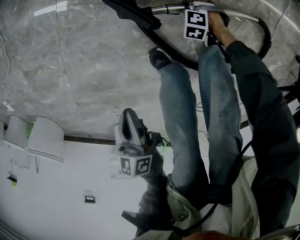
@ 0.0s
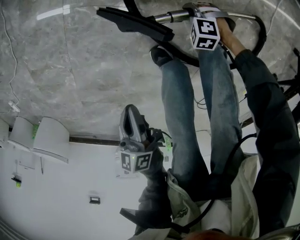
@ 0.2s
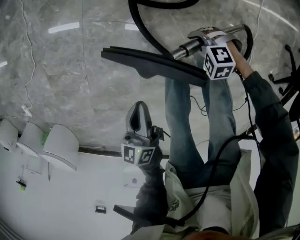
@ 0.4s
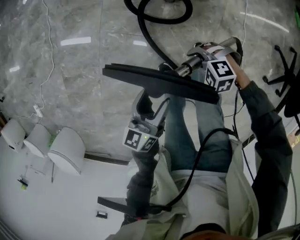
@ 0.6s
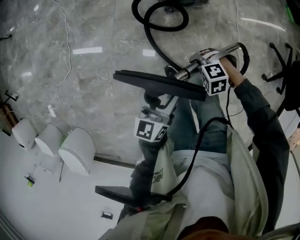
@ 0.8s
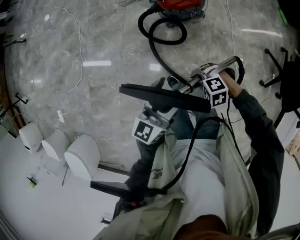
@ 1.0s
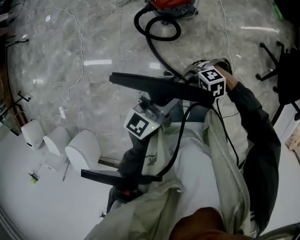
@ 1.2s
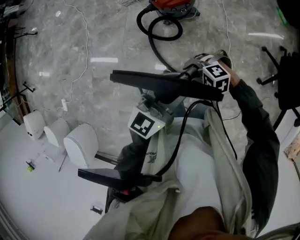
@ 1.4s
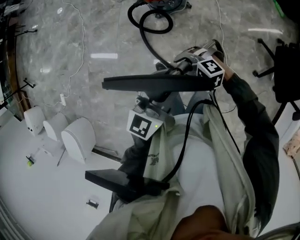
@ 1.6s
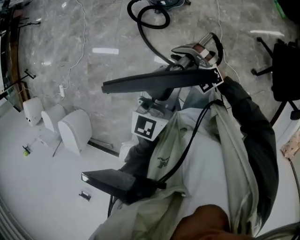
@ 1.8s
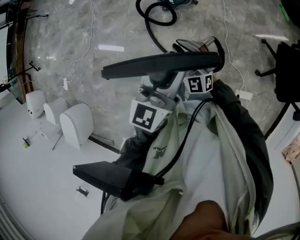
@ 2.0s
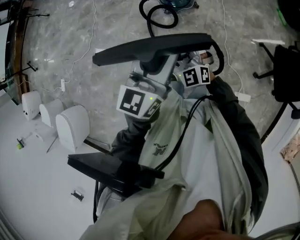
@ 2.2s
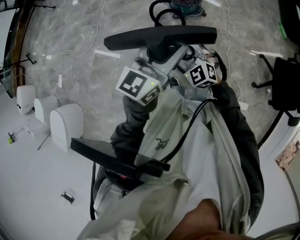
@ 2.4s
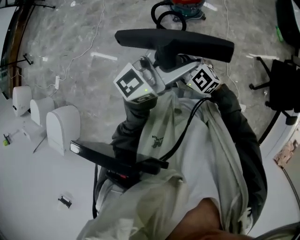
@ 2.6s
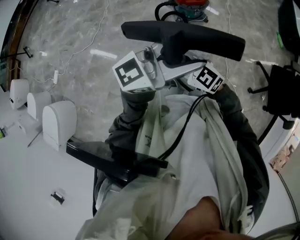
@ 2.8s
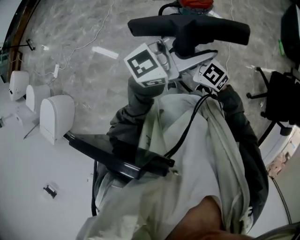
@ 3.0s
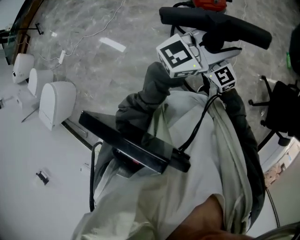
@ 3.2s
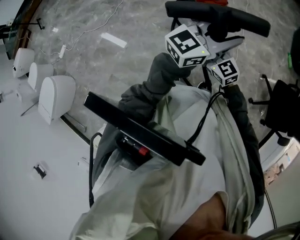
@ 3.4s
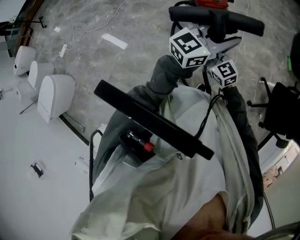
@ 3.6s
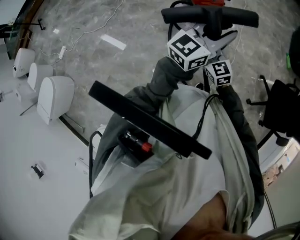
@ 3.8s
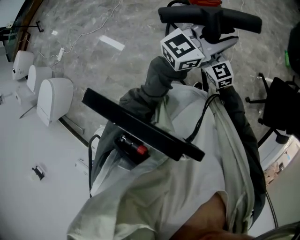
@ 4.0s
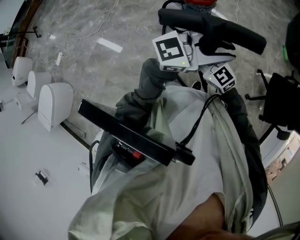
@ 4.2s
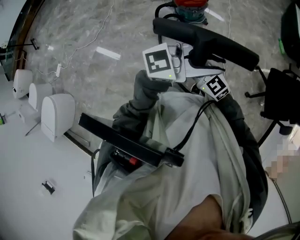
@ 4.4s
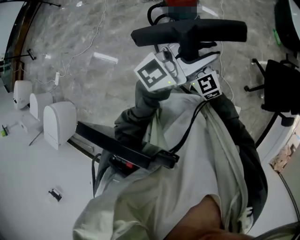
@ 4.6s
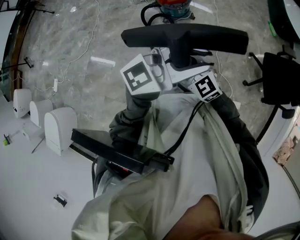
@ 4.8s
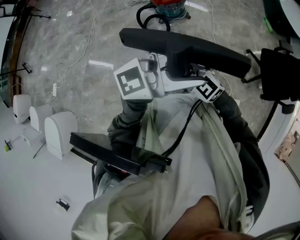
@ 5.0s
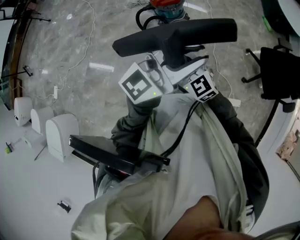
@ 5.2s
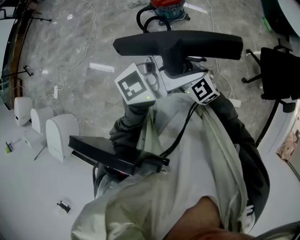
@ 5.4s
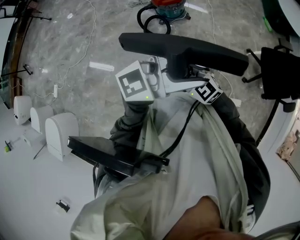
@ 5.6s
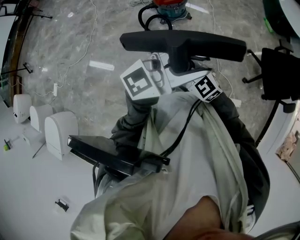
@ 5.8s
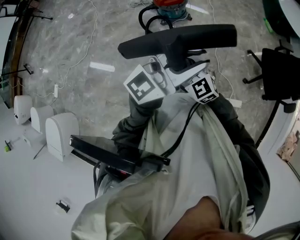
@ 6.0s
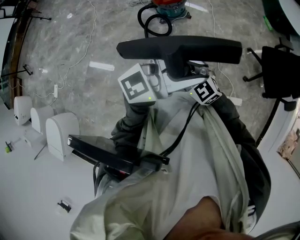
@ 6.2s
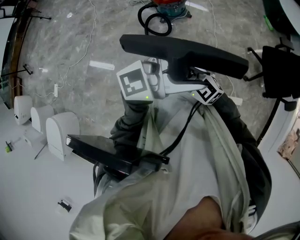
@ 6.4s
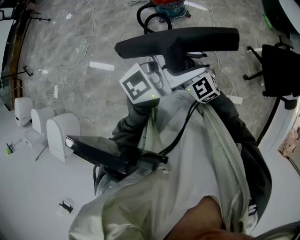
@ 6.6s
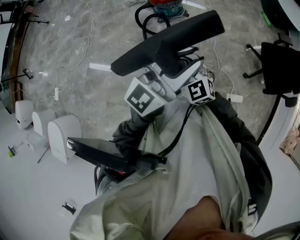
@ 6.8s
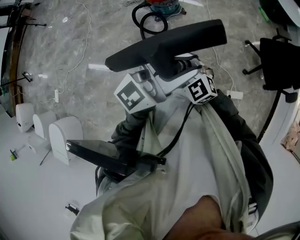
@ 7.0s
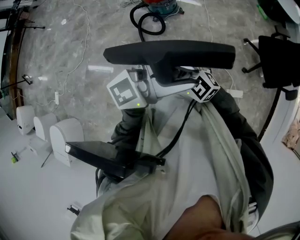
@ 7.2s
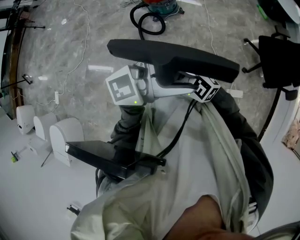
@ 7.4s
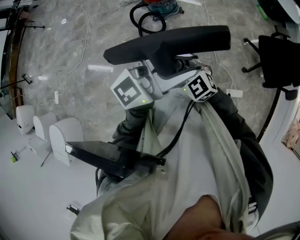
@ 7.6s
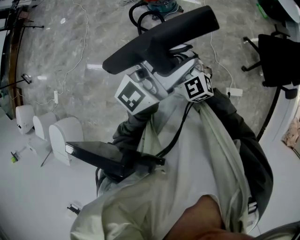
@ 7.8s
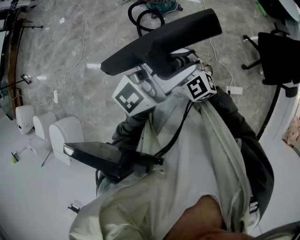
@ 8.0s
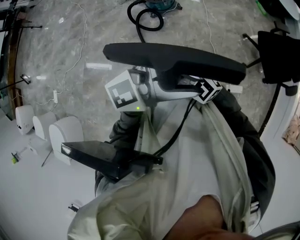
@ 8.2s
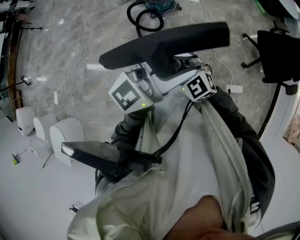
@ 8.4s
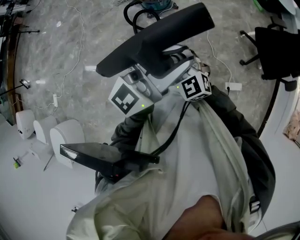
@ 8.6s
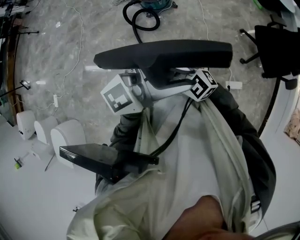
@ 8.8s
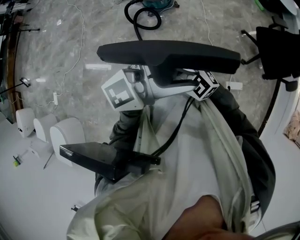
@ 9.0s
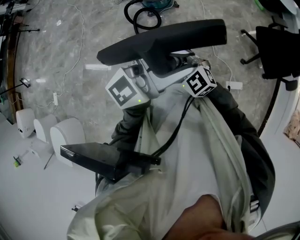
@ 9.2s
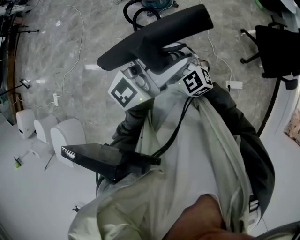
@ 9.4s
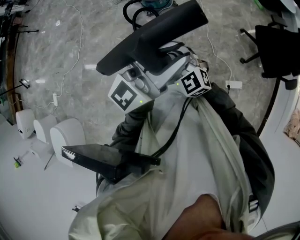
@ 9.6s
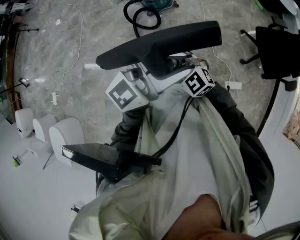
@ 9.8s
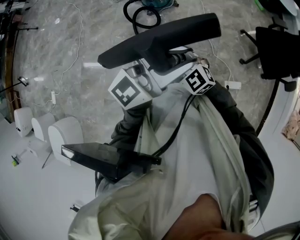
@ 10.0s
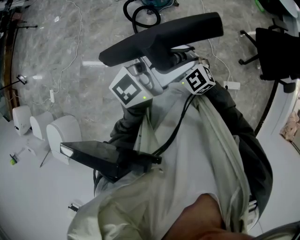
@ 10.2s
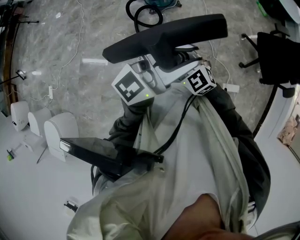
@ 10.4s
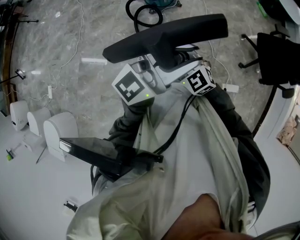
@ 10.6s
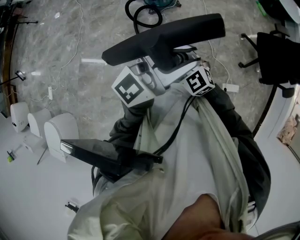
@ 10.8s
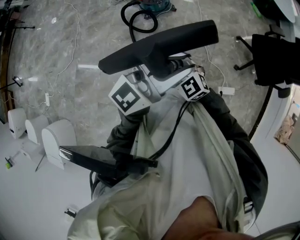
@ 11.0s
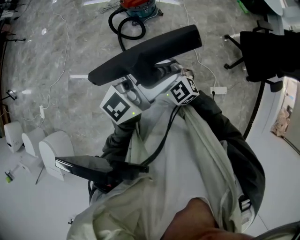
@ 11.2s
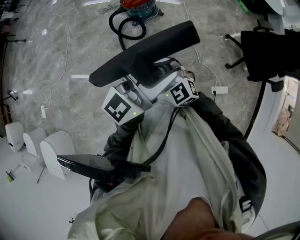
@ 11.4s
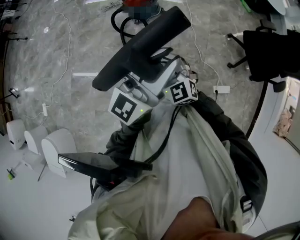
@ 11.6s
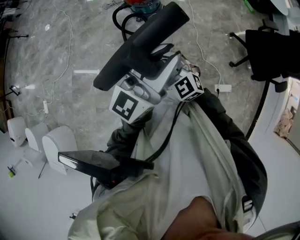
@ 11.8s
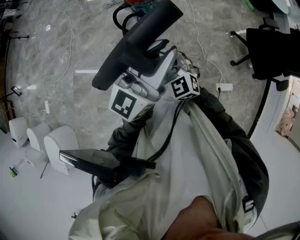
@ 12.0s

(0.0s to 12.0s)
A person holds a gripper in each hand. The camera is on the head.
0.0s - 1.6s: The grippers both shift upward by about 70 cm. The left gripper tilts its fingers approximately 50 degrees upward, and opens up, while the right gripper points its fingers some 40 degrees further upward.
1.6s - 3.0s: The left gripper heads upward, covering about 15 cm, and changes its angle by roughly 30 degrees; the right gripper moves about 25 cm, and changes its angle by approximately 30 degrees.
3.0s - 4.4s: The right gripper changes place by approximately 10 cm. Meanwhile the left gripper shifts by some 15 cm.
7.6s - 9.0s: The grippers make only small movements.
9.0s - 10.4s: The left gripper shifts by some 5 cm.
10.4s - 12.0s: The left gripper goes roughly 5 cm forward, and changes its angle by some 20 degrees.

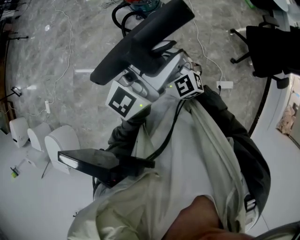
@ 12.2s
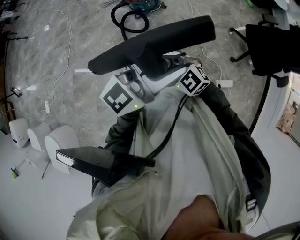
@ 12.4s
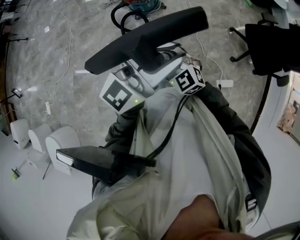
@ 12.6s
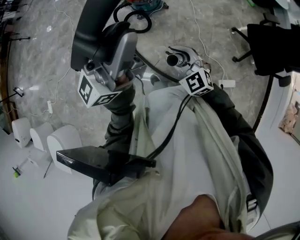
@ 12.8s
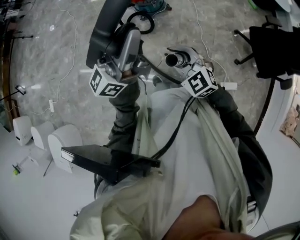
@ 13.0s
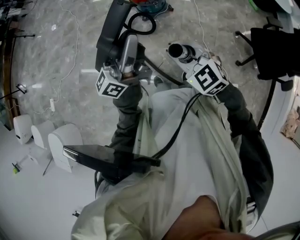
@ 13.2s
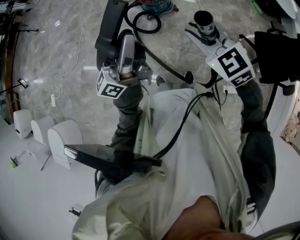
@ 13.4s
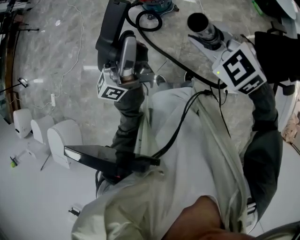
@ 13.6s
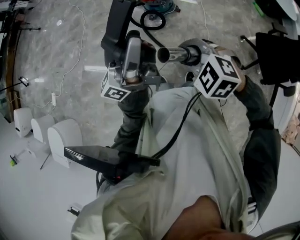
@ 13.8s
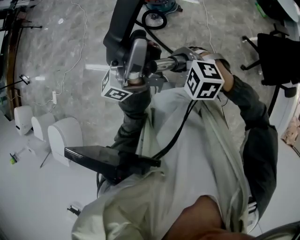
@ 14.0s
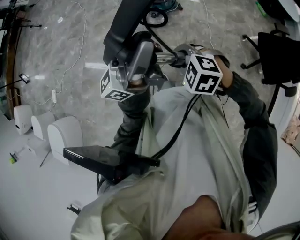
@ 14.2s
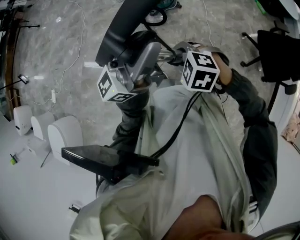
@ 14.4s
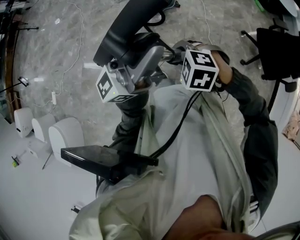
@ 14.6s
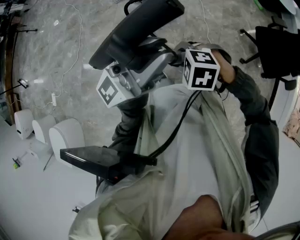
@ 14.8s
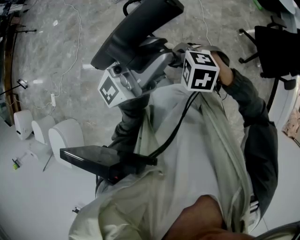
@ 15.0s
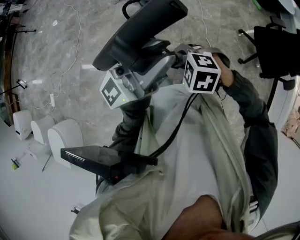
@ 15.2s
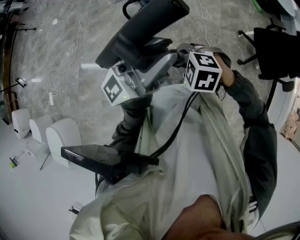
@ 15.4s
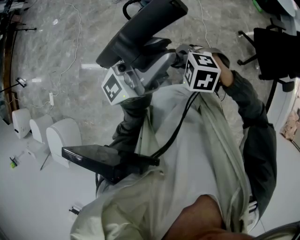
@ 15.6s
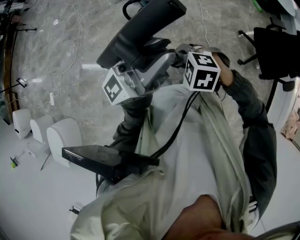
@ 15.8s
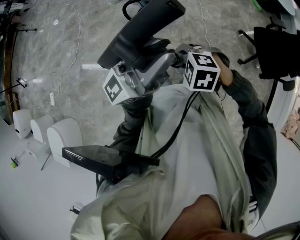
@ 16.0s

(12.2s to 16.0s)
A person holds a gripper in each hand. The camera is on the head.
12.2s - 13.4s: The left gripper travels upward and back again, about 5 cm each way, and turns by about 40 degrees. Meanwhile the right gripper goes roughly 10 cm upward.
13.4s - 14.8s: The left gripper changes place by roughly 10 cm, and changes its angle by approximately 30 degrees; the right gripper moves some 15 cm, and angles its fingers downward, by roughly 40 degrees.
14.8s - 16.0s: The grippers stay close to where they were, moving slightly.

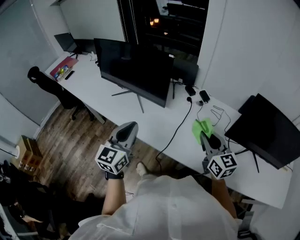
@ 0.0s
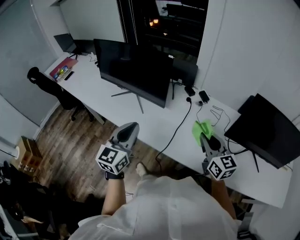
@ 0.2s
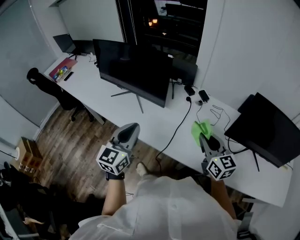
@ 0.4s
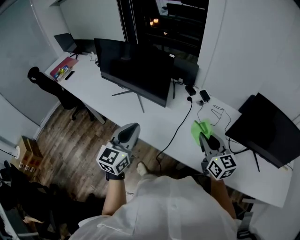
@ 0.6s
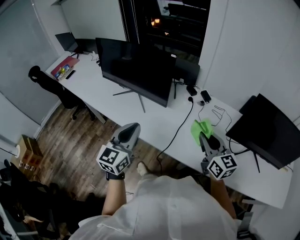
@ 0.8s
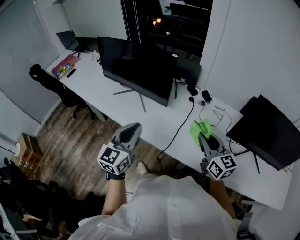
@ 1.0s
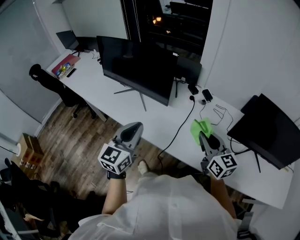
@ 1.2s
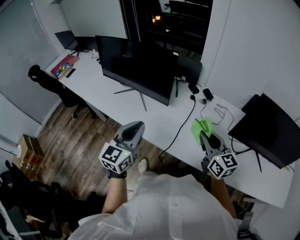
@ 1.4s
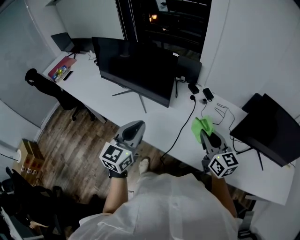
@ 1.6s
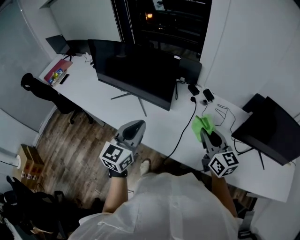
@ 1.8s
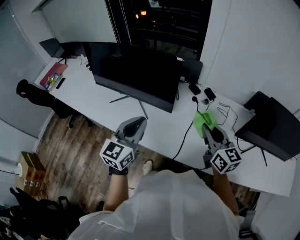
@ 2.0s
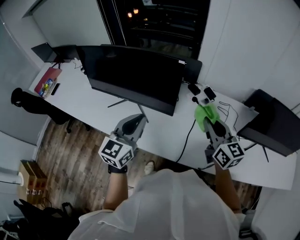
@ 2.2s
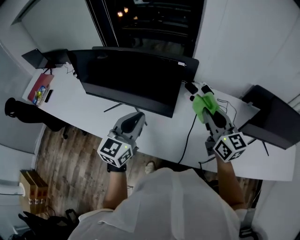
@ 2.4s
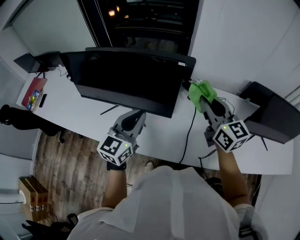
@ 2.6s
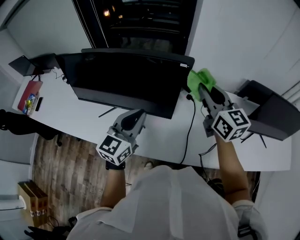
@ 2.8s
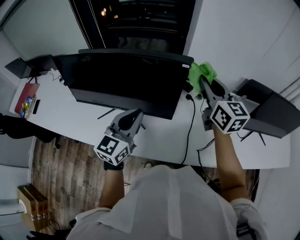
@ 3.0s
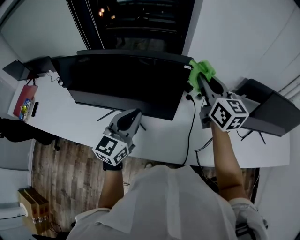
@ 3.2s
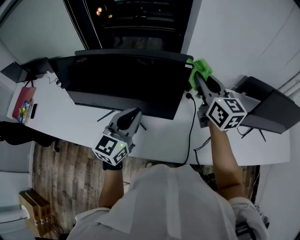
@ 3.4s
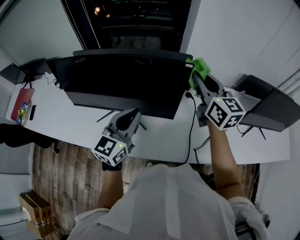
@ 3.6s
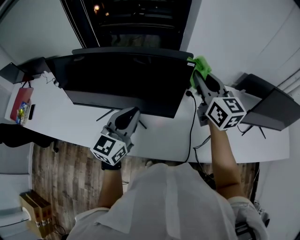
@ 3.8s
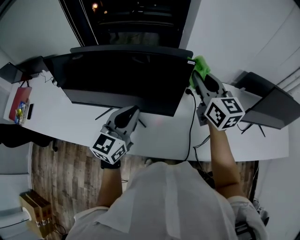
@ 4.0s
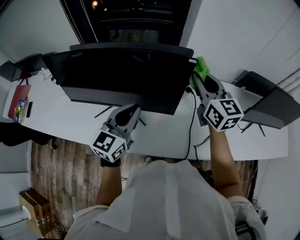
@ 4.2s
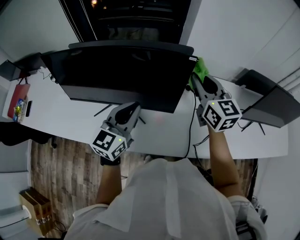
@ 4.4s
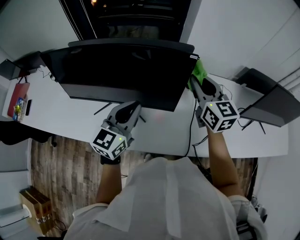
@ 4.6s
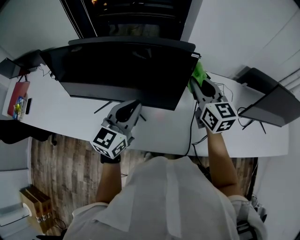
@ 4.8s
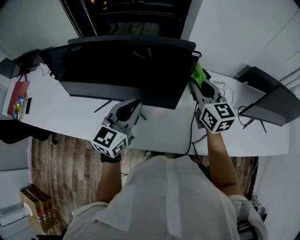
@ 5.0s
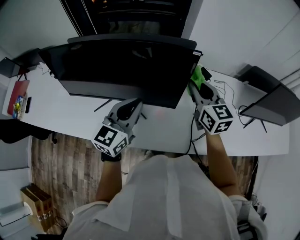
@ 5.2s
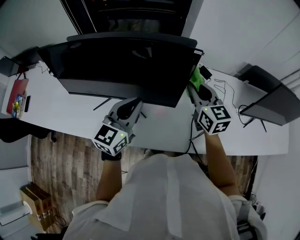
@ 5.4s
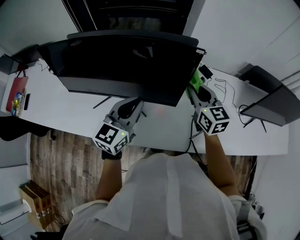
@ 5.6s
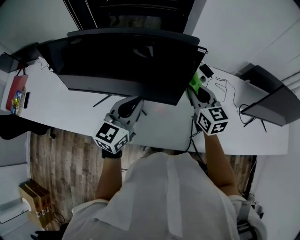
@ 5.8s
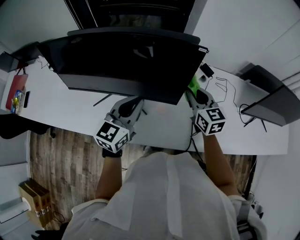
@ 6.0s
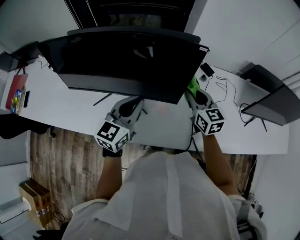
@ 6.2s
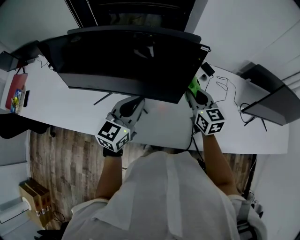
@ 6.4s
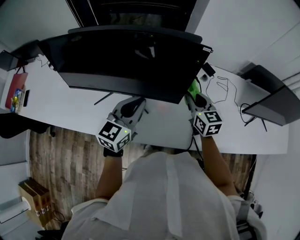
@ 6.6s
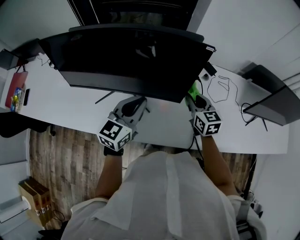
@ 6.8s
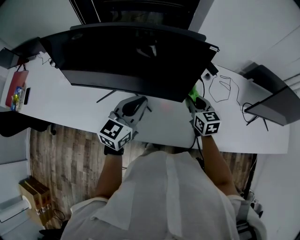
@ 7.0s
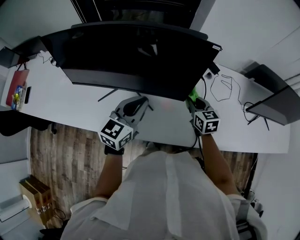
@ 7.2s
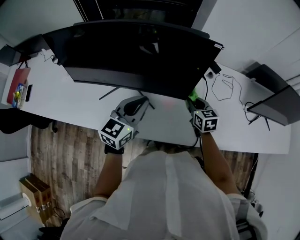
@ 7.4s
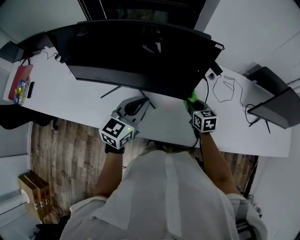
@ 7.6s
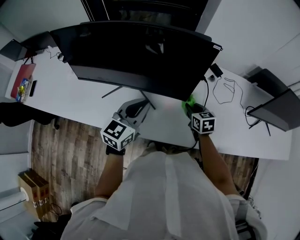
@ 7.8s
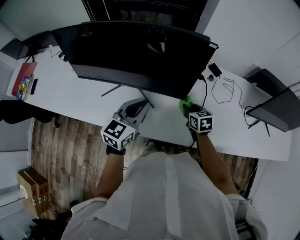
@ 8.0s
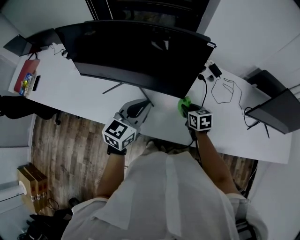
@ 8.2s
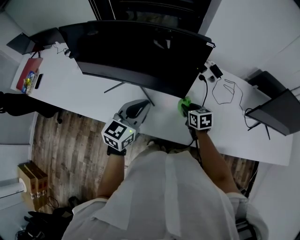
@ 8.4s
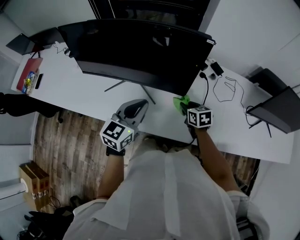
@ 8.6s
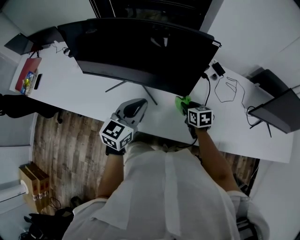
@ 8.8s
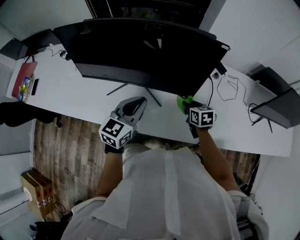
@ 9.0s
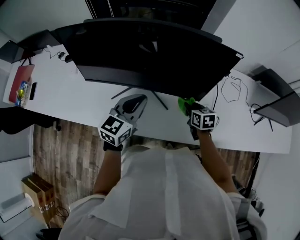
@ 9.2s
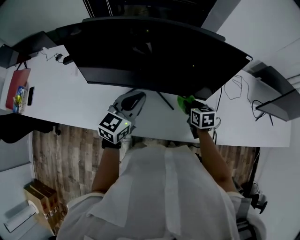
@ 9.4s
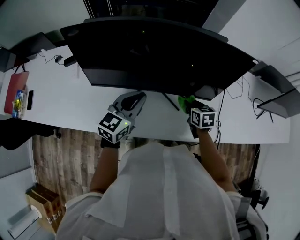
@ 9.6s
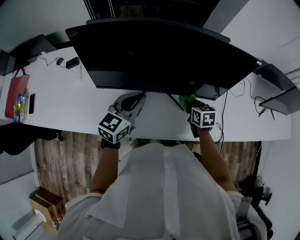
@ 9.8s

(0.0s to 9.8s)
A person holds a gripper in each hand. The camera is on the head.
0.0s - 1.4s: The grippers stay close to where they were, moving slightly.
1.4s - 2.8s: The right gripper goes approximately 30 cm forward, to the left and upward; the left gripper travels forward and to the left by some 20 cm, and swivels some 20 degrees.
2.8s - 4.2s: The left gripper ends up approximately 5 cm from where it was. Meanwhile the right gripper ends up roughly 5 cm from where it was.
4.2s - 5.6s: The right gripper is displaced downward by some 10 cm.
5.6s - 7.0s: The right gripper shifts roughly 10 cm downward.
7.0s - 8.4s: The left gripper heads backward, covering some 5 cm; the right gripper moves downward, about 5 cm, and swivels some 20 degrees.
8.4s - 9.8s: The two grippers go about 20 cm to the left.
